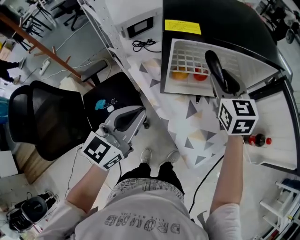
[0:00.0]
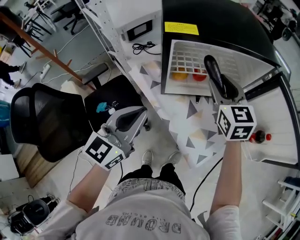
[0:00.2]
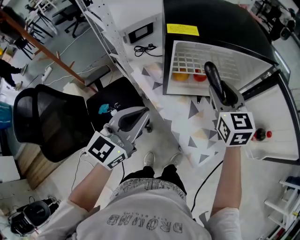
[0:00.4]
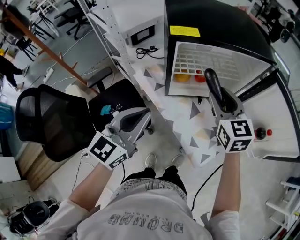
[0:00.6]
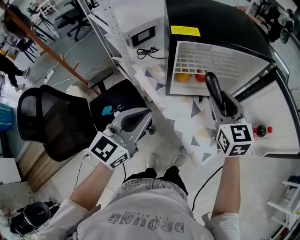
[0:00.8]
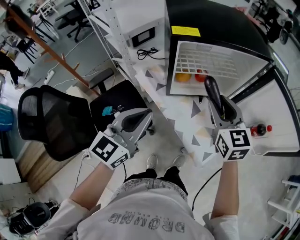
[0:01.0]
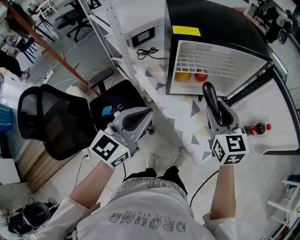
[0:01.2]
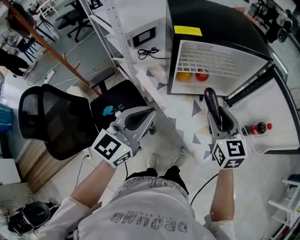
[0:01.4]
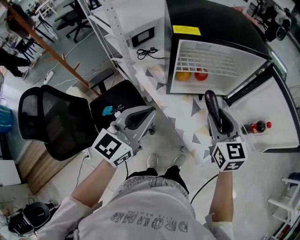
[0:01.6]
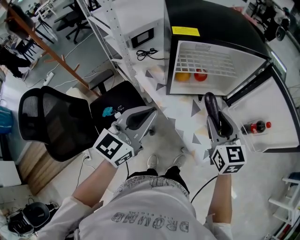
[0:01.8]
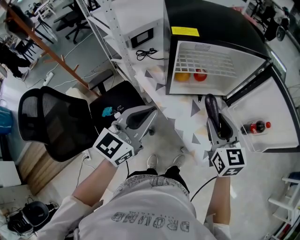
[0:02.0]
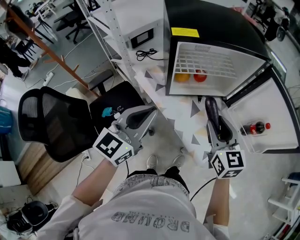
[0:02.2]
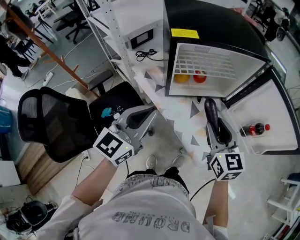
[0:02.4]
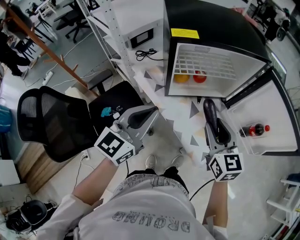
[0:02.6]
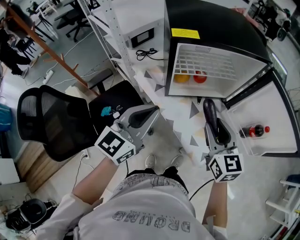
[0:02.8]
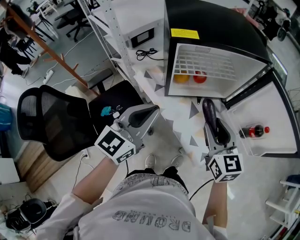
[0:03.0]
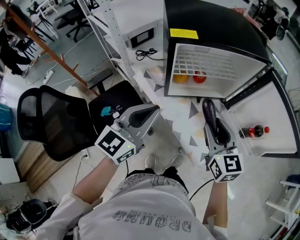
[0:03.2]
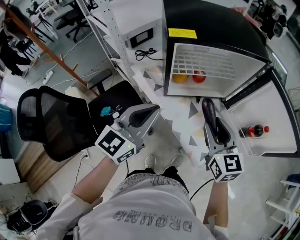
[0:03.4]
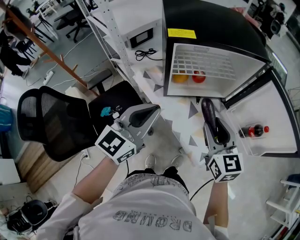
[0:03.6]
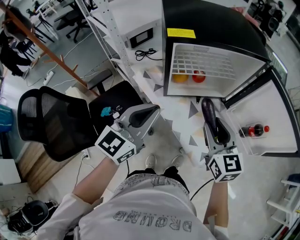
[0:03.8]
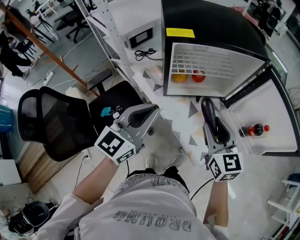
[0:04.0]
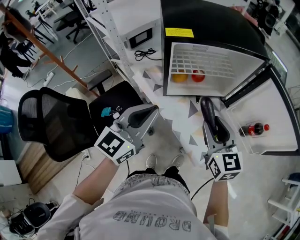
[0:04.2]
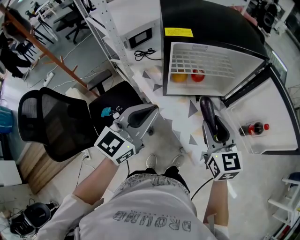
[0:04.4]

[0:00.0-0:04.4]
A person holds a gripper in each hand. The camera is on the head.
0:00.0 to 0:01.4: The left gripper moves approximately 5 cm; the right gripper heads backward, covering some 15 cm.
0:01.4 to 0:03.0: The grippers stay close to where they were, moving slightly.
0:03.0 to 0:04.4: Both grippers stay put.

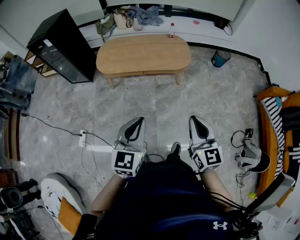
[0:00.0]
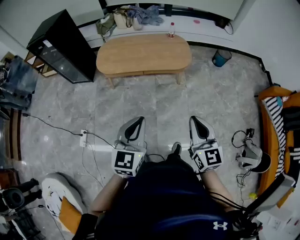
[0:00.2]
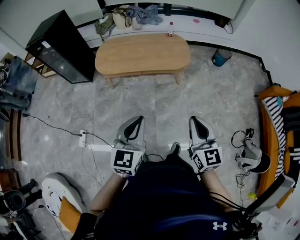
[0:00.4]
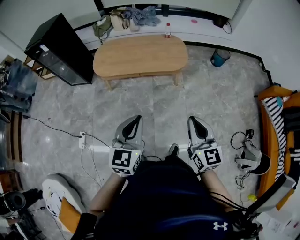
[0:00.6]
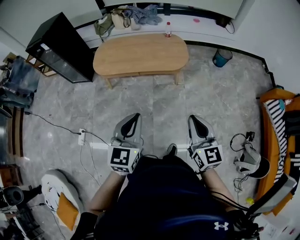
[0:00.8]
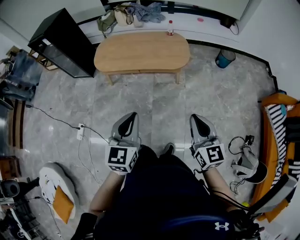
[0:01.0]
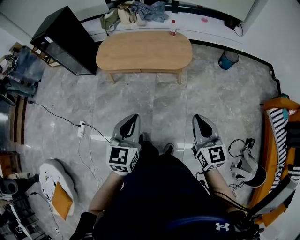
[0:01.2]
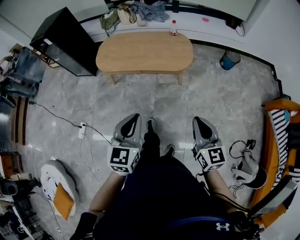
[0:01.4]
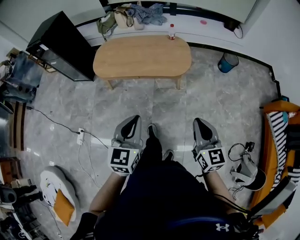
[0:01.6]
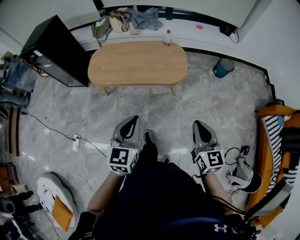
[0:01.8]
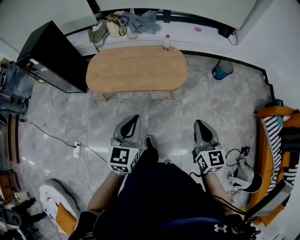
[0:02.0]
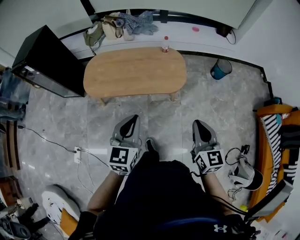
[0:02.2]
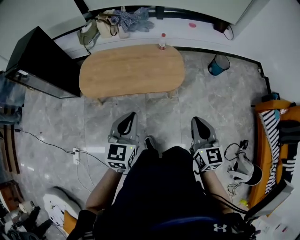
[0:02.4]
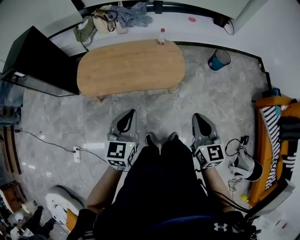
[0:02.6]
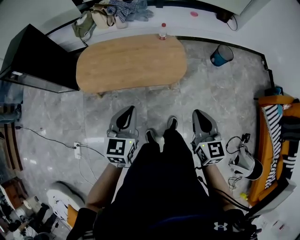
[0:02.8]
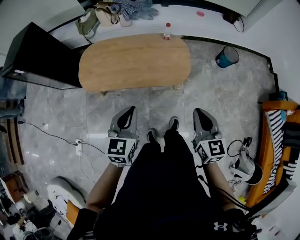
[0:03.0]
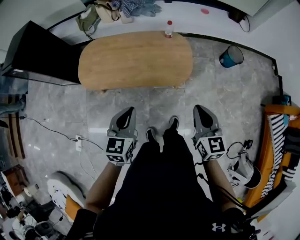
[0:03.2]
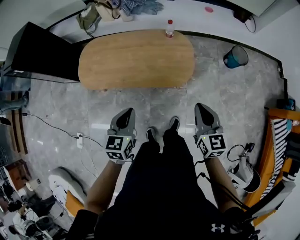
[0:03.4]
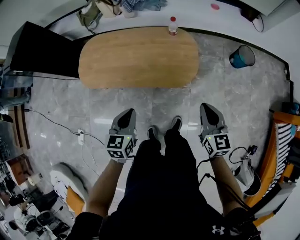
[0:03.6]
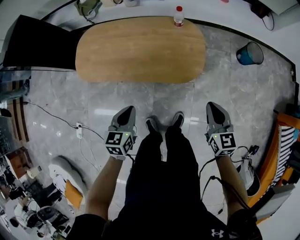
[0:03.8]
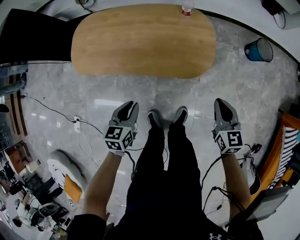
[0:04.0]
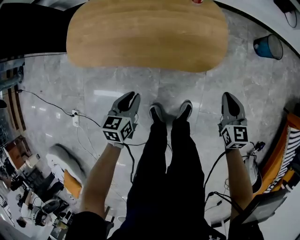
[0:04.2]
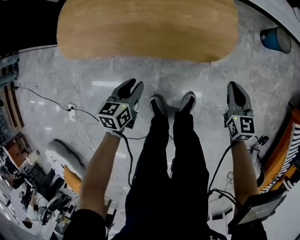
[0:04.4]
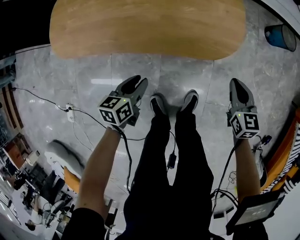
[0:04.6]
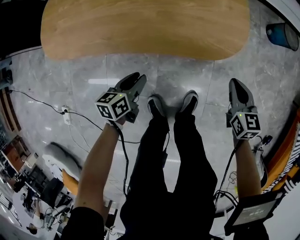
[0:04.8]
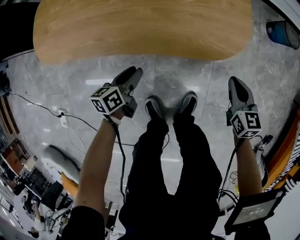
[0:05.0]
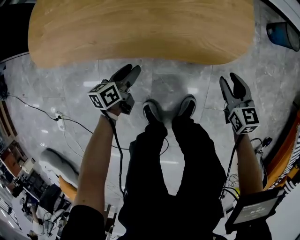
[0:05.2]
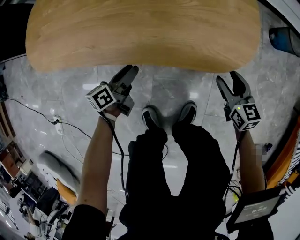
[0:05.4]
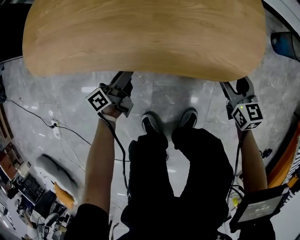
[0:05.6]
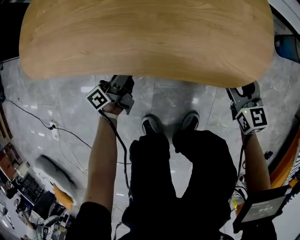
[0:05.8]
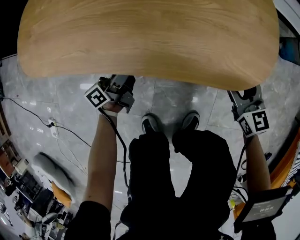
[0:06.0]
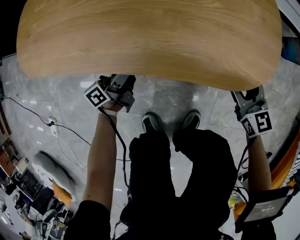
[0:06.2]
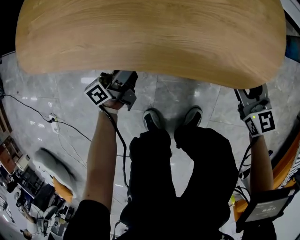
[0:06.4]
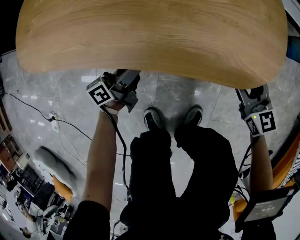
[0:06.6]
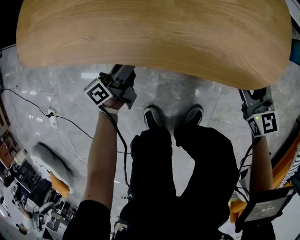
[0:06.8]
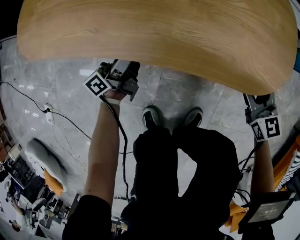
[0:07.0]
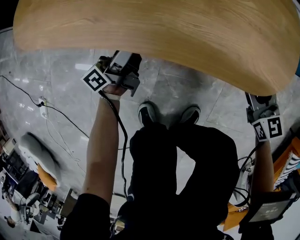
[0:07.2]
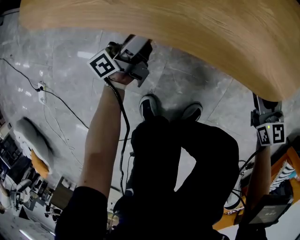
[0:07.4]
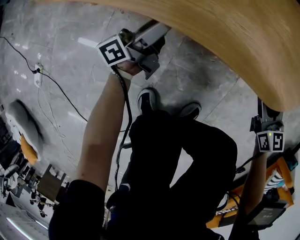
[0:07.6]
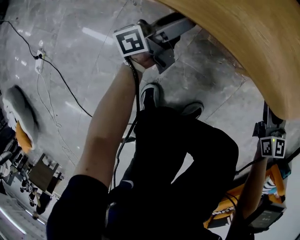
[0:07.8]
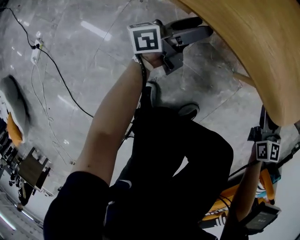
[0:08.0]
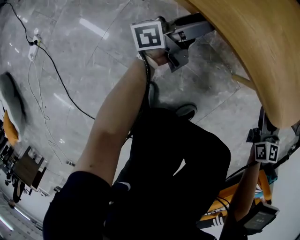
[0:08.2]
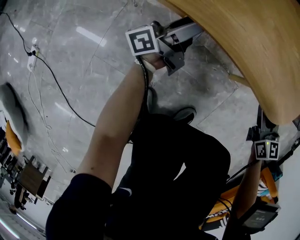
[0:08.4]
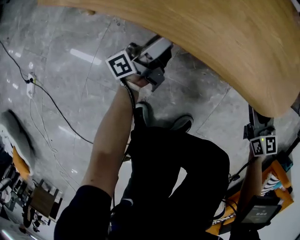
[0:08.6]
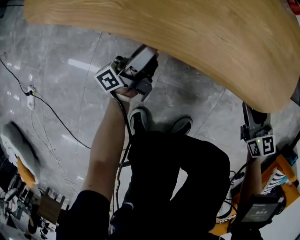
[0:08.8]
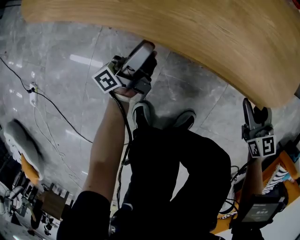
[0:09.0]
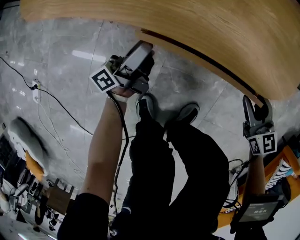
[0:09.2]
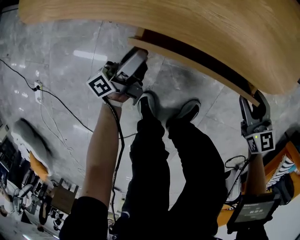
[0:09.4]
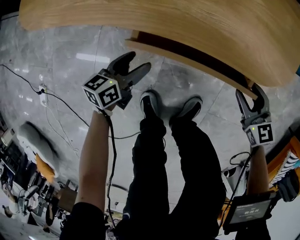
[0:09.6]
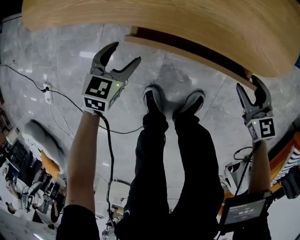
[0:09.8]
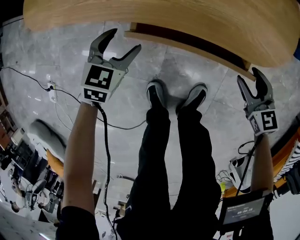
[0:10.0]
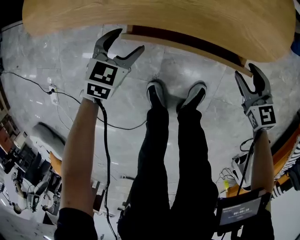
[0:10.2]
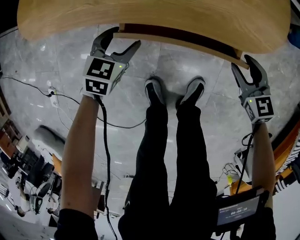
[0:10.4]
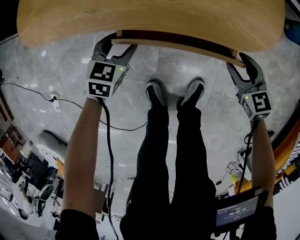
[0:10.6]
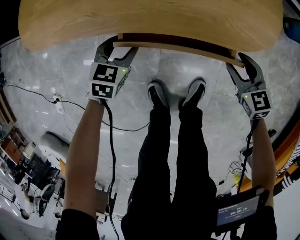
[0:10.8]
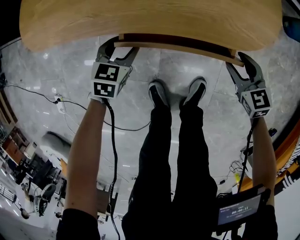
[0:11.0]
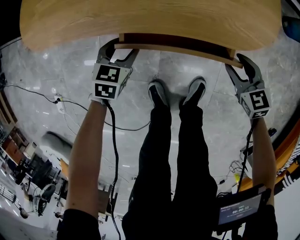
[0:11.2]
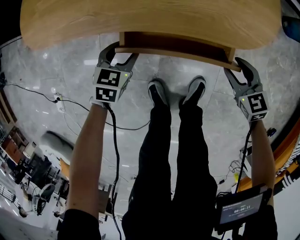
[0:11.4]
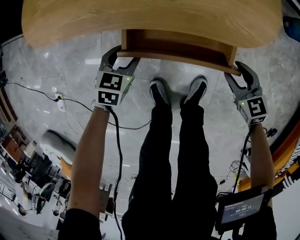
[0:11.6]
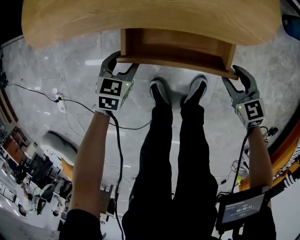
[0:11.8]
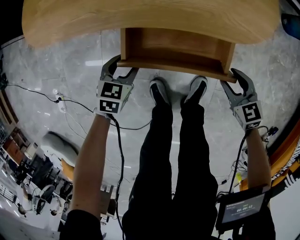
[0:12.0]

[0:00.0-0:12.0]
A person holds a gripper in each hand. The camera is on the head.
0:00.0 to 0:01.6: The left gripper is displaced forward and to the right by roughly 15 cm, while the right gripper shifts approximately 20 cm to the right and forward.
0:01.6 to 0:03.0: The two grippers go about 25 cm forward.
0:03.0 to 0:04.4: The right gripper shifts approximately 40 cm downward and forward. The left gripper shifts some 40 cm downward, rotates roughly 30 degrees, and opens its fingers.
0:04.4 to 0:06.0: The left gripper travels downward and forward by approximately 25 cm, angles its fingers upward, by approximately 40 degrees, and opens. The right gripper travels downward by roughly 20 cm, and opens.
0:06.0 to 0:07.6: The grippers stay close to where they were, moving slightly.
0:07.6 to 0:09.0: The grippers stay close to where they were, moving slightly.
0:09.0 to 0:10.4: The left gripper tips its fingers downward by about 70 degrees.
0:10.4 to 0:12.0: Both grippers move backward, roughly 10 cm.

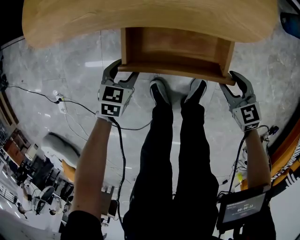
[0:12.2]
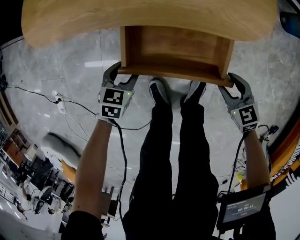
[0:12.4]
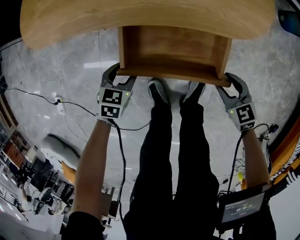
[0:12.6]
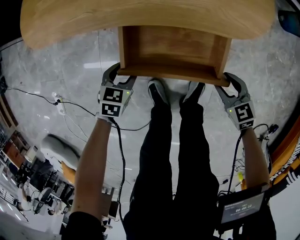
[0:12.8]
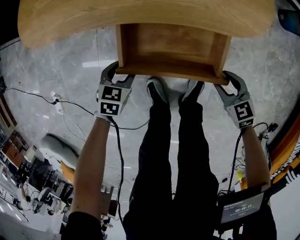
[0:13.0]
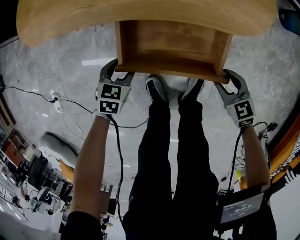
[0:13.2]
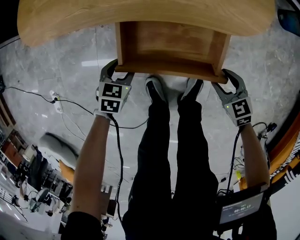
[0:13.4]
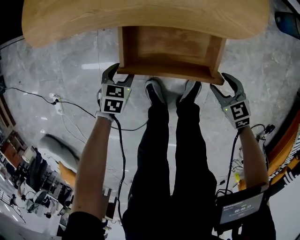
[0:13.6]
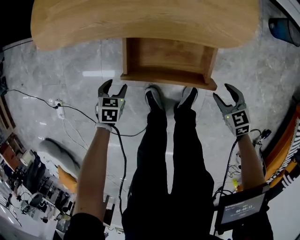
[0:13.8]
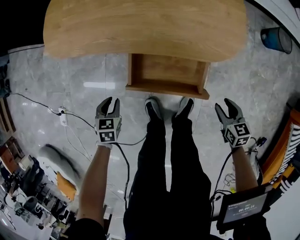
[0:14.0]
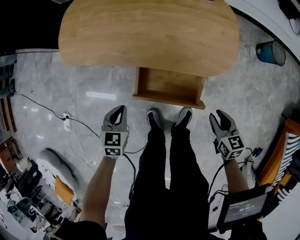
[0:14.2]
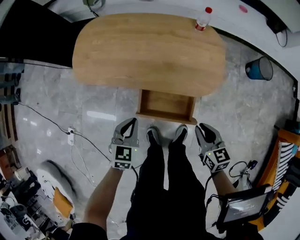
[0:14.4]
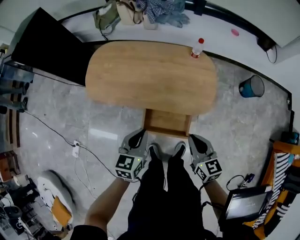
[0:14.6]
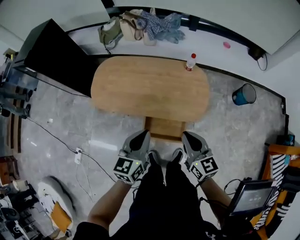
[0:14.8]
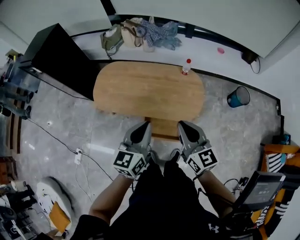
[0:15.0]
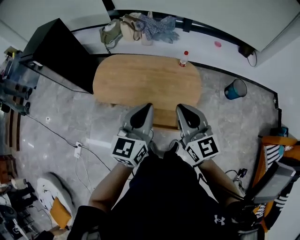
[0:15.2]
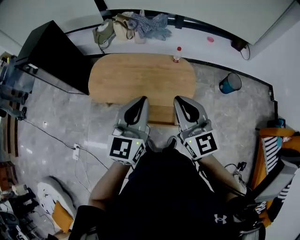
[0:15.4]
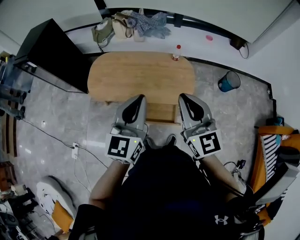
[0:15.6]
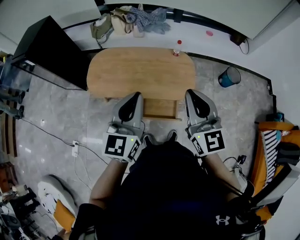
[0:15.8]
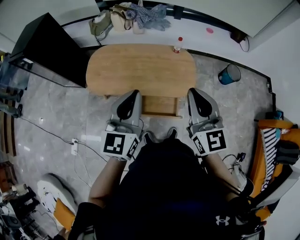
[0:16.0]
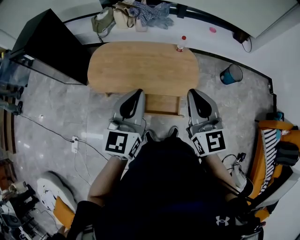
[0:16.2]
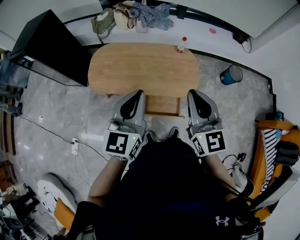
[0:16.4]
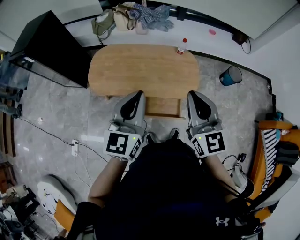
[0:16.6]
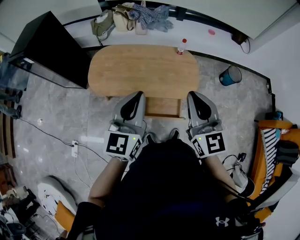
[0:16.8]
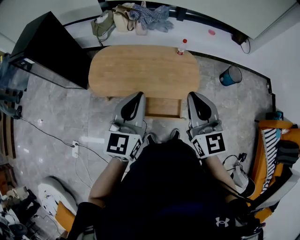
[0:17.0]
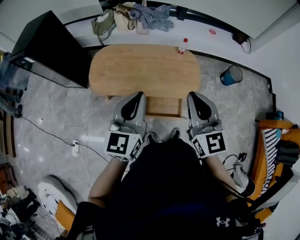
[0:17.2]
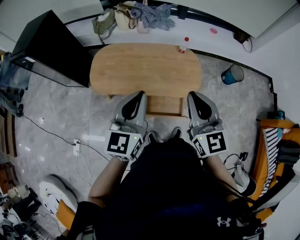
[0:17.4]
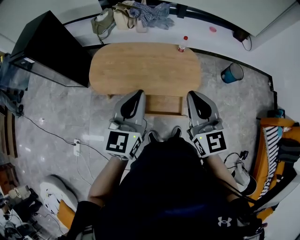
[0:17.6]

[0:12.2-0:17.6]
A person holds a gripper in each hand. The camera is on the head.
0:12.2 to 0:13.6: The grippers move only a little.
0:13.6 to 0:15.0: Both grippers move upward, about 70 cm. The left gripper tilts its fingers about 50 degrees upward, and closes up, while the right gripper angles its fingers upward, by approximately 50 degrees, and closes its fingers.
0:15.0 to 0:16.2: Both grippers travel together upward, roughly 10 cm.
0:16.2 to 0:17.6: The grippers move only a little.

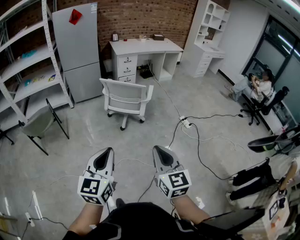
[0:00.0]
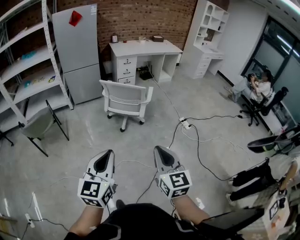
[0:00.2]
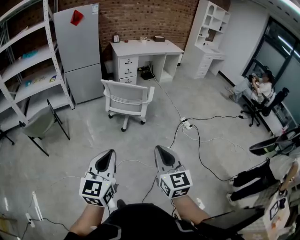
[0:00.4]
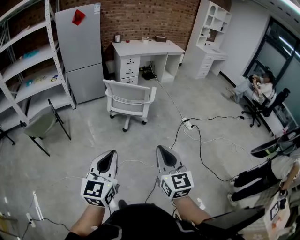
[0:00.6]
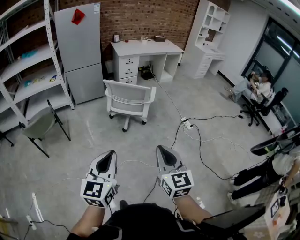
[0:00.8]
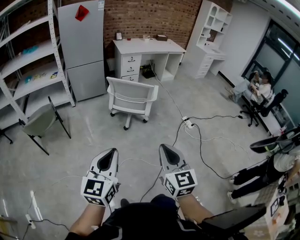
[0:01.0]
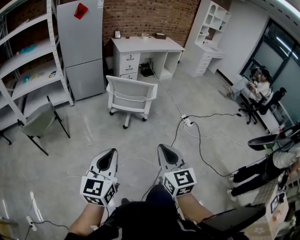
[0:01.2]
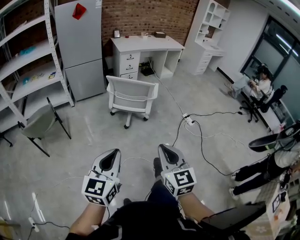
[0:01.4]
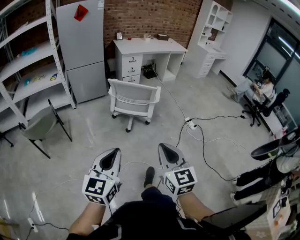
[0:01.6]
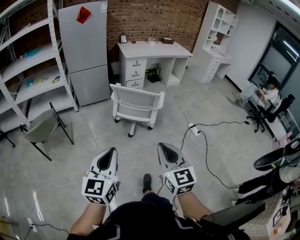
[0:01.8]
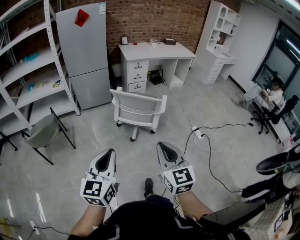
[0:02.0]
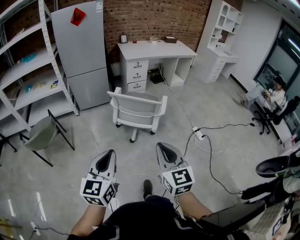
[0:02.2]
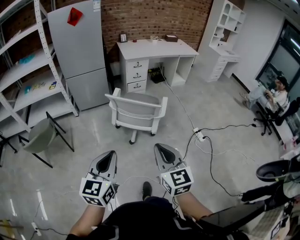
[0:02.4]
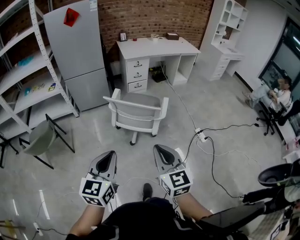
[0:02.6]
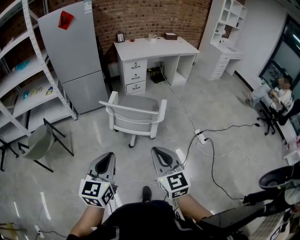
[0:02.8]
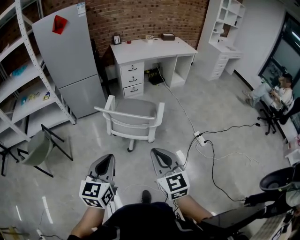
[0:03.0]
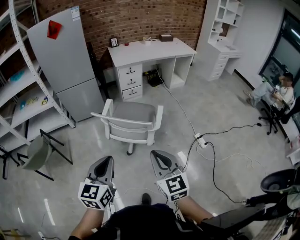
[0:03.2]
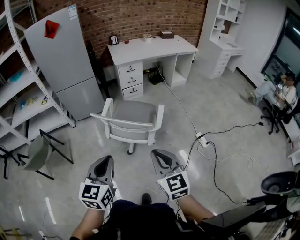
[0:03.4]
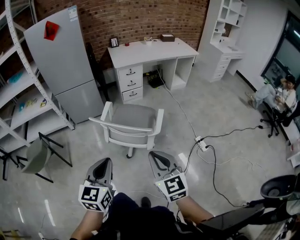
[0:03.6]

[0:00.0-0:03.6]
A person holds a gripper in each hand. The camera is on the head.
0:00.0 to 0:01.8: Both grippers travel together forward and to the left, about 15 cm.
0:01.8 to 0:03.6: The right gripper travels forward by some 30 cm; the left gripper travels forward and to the right by about 35 cm.
